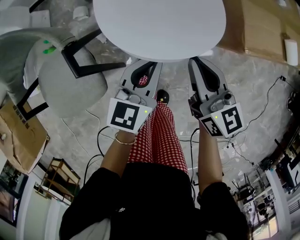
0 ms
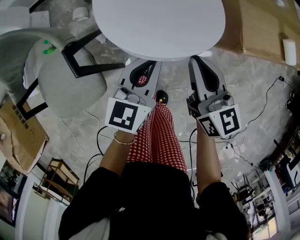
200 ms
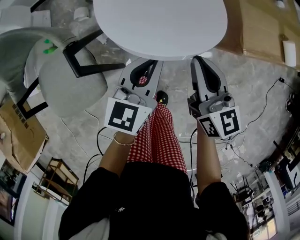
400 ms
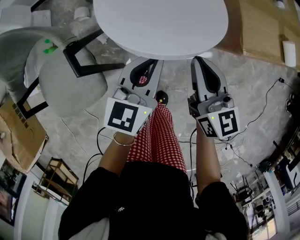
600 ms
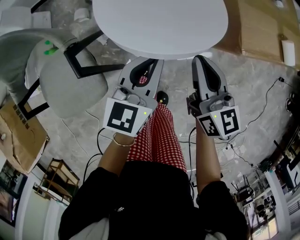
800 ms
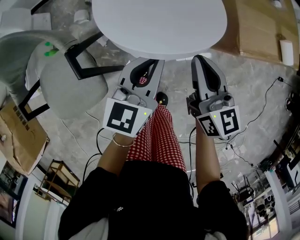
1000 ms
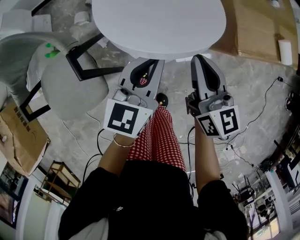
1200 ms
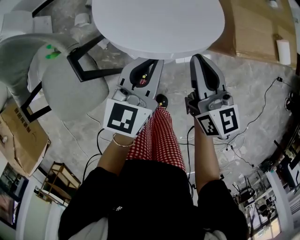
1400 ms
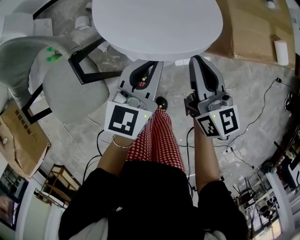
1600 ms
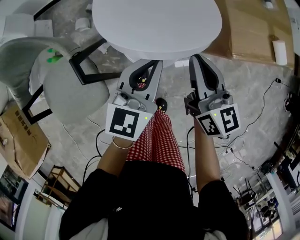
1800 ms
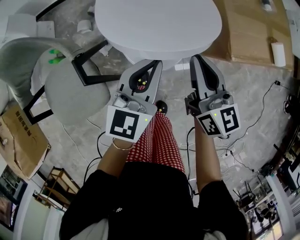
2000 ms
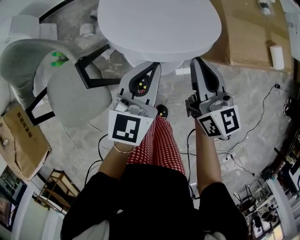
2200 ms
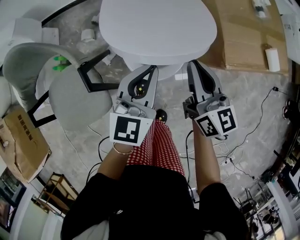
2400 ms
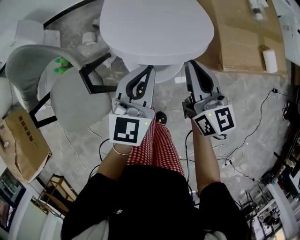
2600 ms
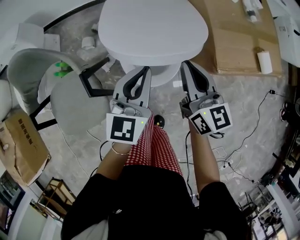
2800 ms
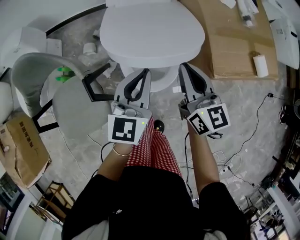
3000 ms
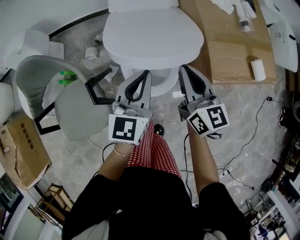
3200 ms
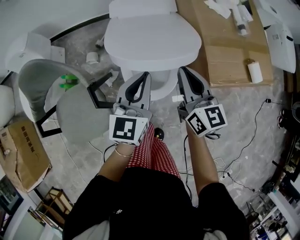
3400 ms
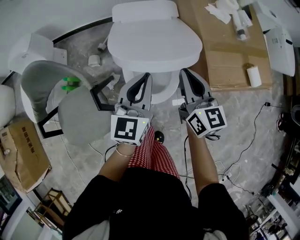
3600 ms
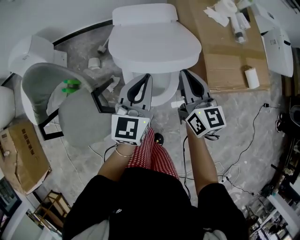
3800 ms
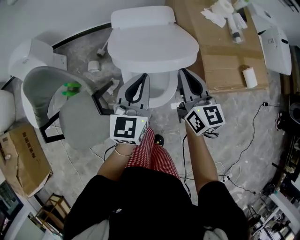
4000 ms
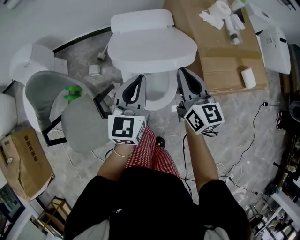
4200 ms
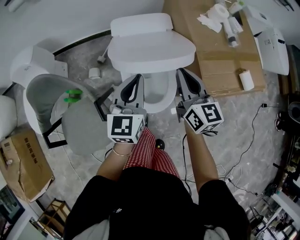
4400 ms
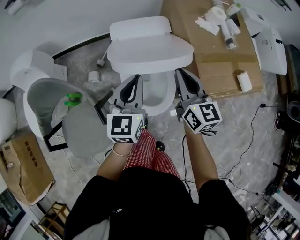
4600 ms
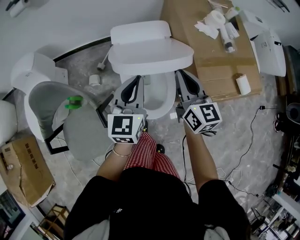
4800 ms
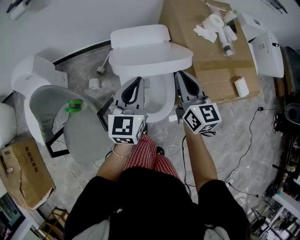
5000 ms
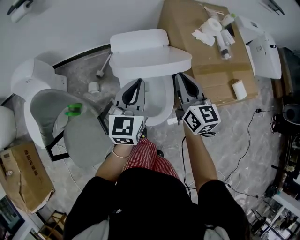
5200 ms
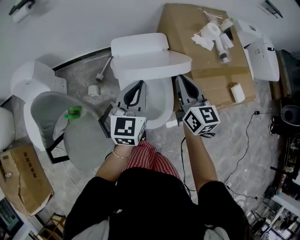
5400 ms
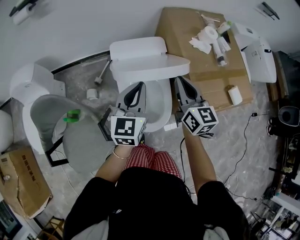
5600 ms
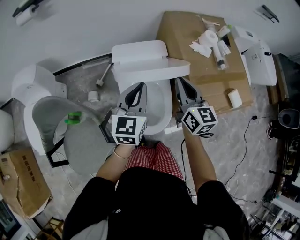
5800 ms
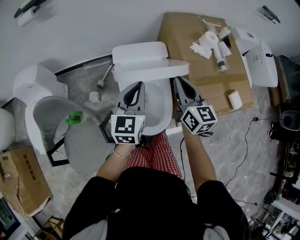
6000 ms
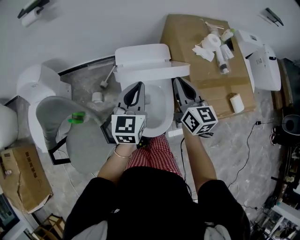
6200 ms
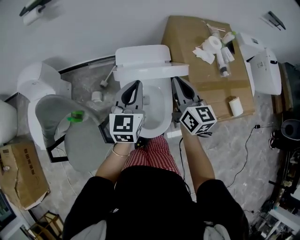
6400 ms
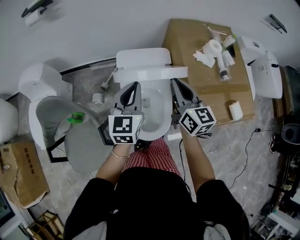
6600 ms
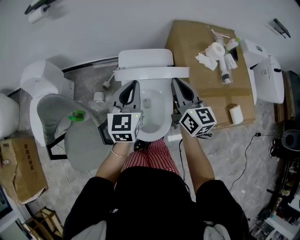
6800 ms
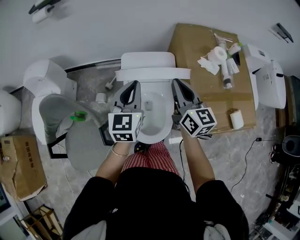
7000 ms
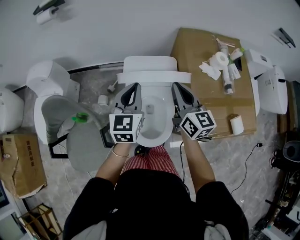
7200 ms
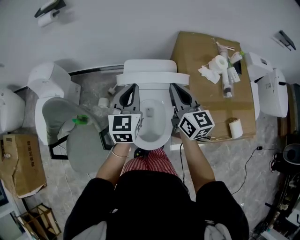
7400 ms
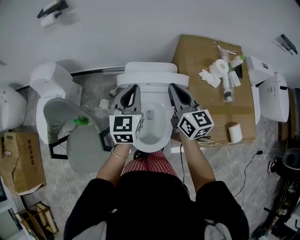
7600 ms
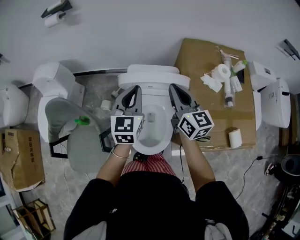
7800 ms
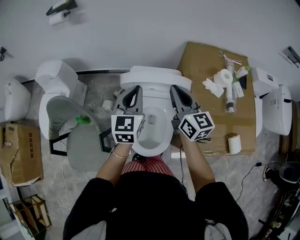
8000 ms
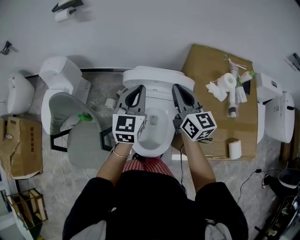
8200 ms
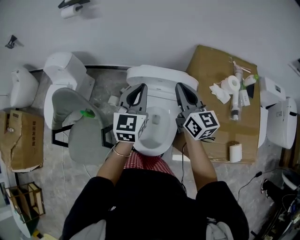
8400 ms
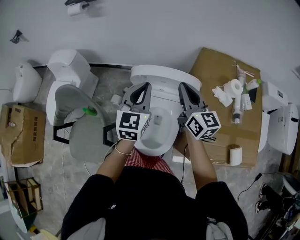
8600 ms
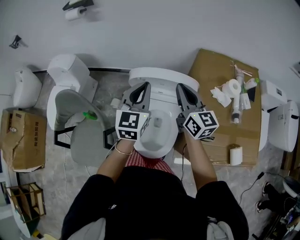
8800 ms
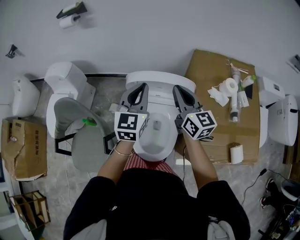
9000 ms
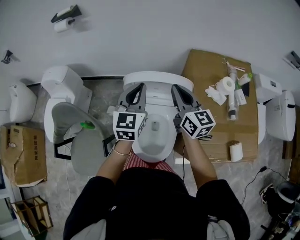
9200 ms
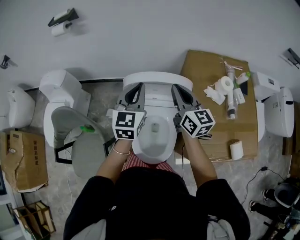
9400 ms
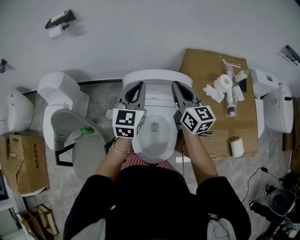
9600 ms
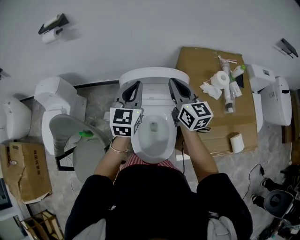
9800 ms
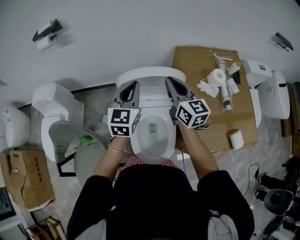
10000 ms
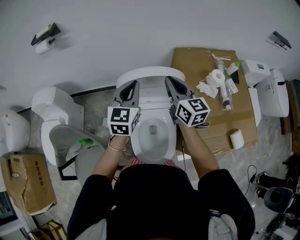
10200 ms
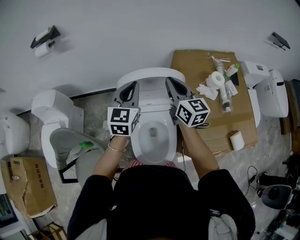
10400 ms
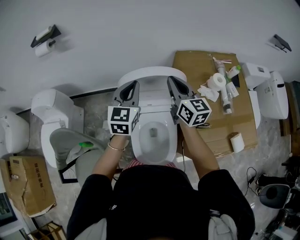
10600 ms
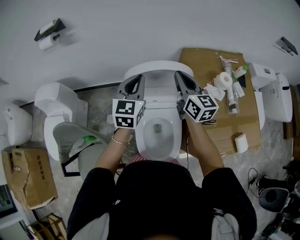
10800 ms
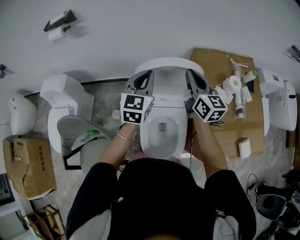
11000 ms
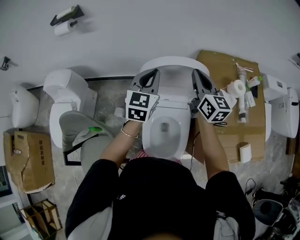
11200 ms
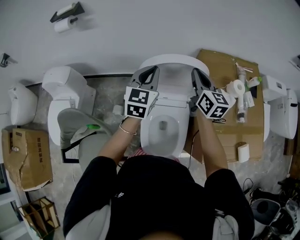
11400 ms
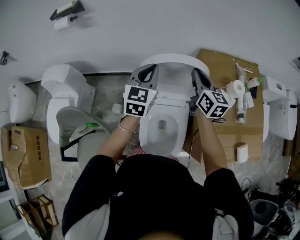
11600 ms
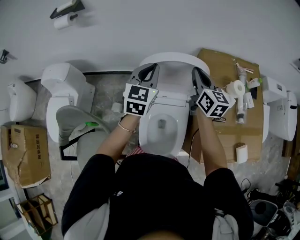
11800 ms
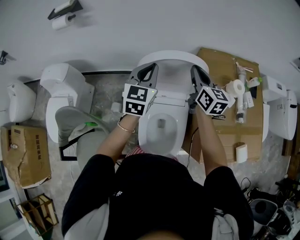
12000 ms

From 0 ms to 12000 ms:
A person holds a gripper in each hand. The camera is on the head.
From 0 ms to 1600 ms: The left gripper shifts approximately 5 cm upward. The right gripper changes place by about 5 cm.
From 1600 ms to 3000 ms: The grippers both shift upward by roughly 5 cm.
From 3000 ms to 4400 ms: Both grippers travel together upward and forward, roughly 10 cm.
From 4400 ms to 6000 ms: Both grippers move forward, roughly 5 cm.
From 6000 ms to 7600 ms: Both grippers move forward, roughly 5 cm.
From 7600 ms to 9000 ms: The left gripper moves some 5 cm; the right gripper travels forward by approximately 5 cm.
From 9000 ms to 10400 ms: The grippers both shift forward by approximately 5 cm.
From 10400 ms to 12000 ms: The grippers both shift forward by about 5 cm.

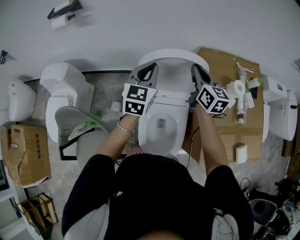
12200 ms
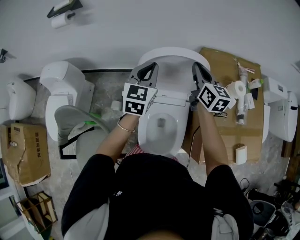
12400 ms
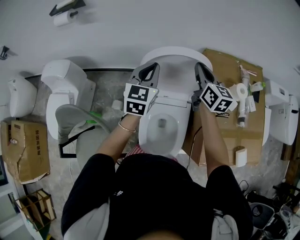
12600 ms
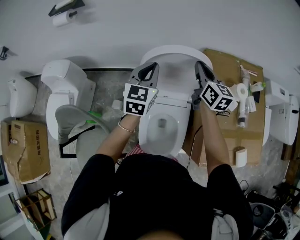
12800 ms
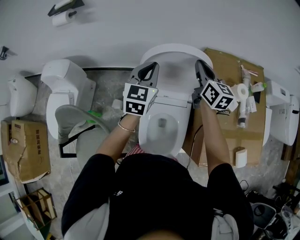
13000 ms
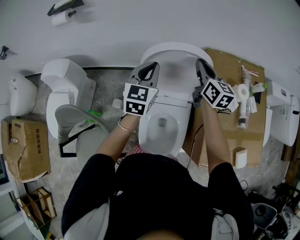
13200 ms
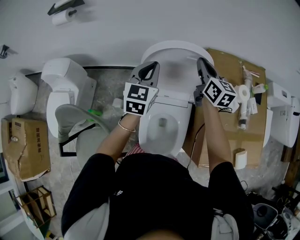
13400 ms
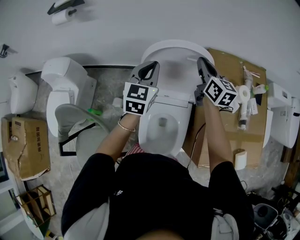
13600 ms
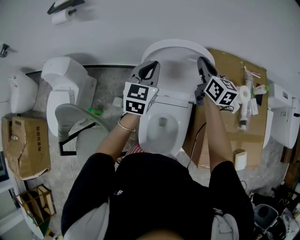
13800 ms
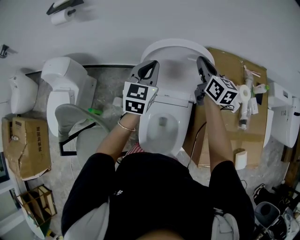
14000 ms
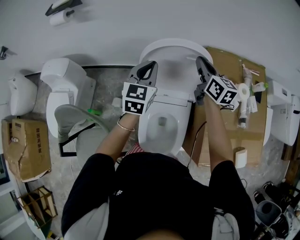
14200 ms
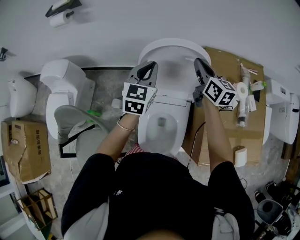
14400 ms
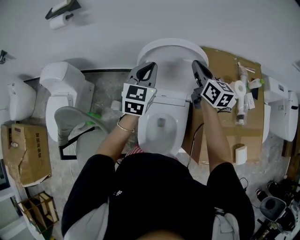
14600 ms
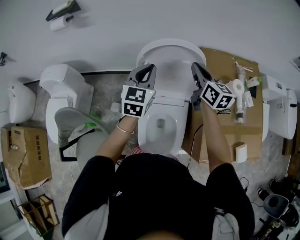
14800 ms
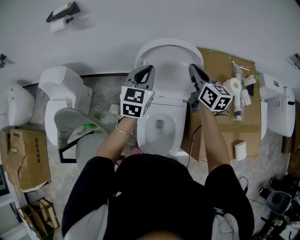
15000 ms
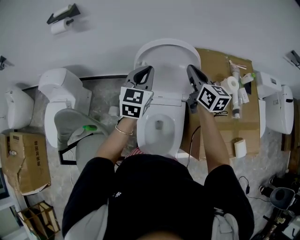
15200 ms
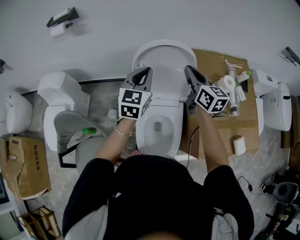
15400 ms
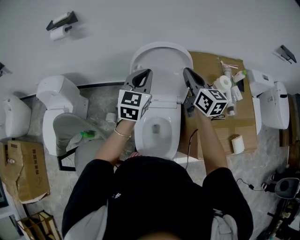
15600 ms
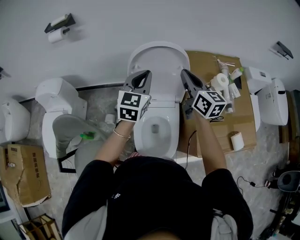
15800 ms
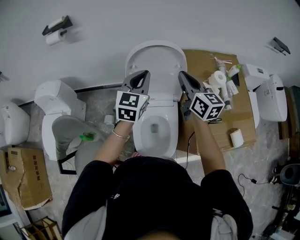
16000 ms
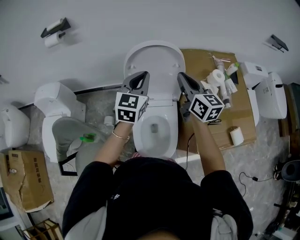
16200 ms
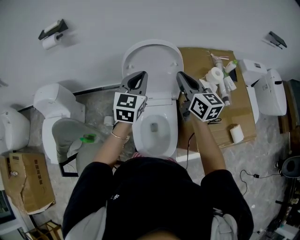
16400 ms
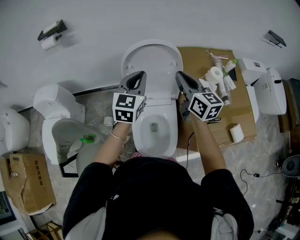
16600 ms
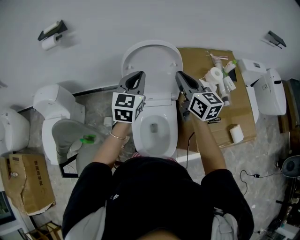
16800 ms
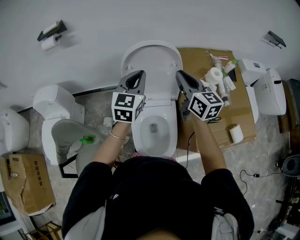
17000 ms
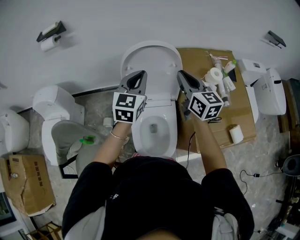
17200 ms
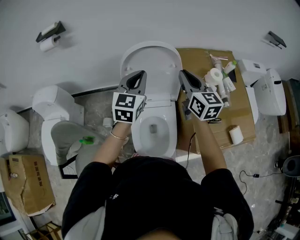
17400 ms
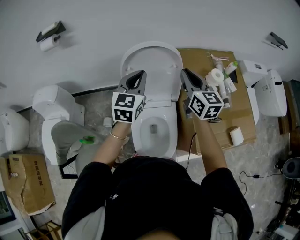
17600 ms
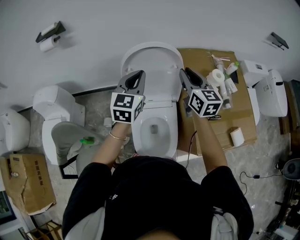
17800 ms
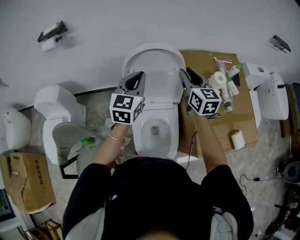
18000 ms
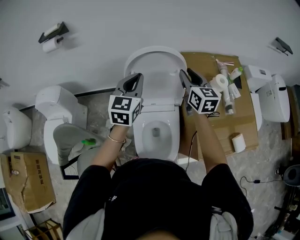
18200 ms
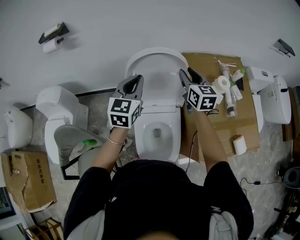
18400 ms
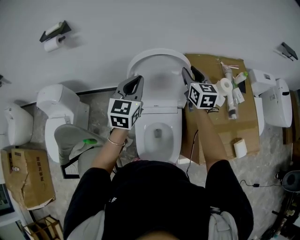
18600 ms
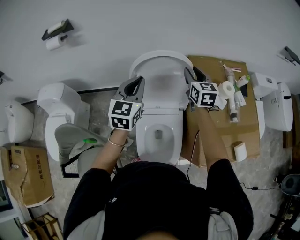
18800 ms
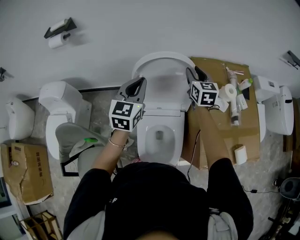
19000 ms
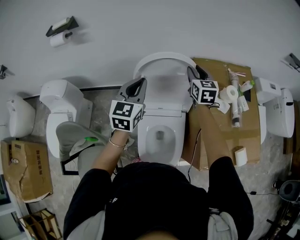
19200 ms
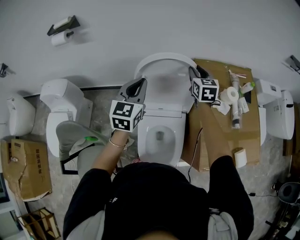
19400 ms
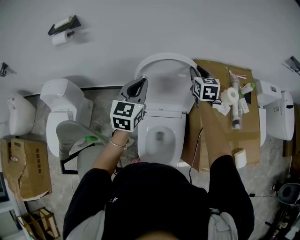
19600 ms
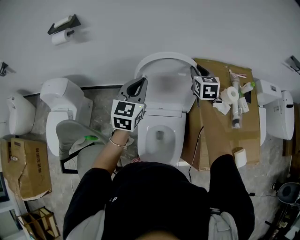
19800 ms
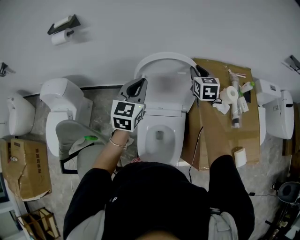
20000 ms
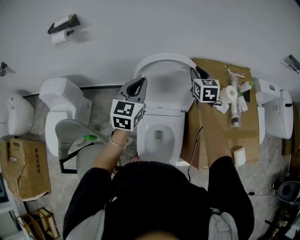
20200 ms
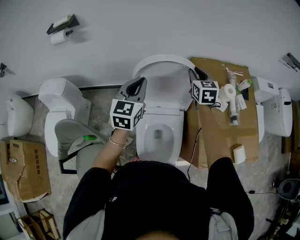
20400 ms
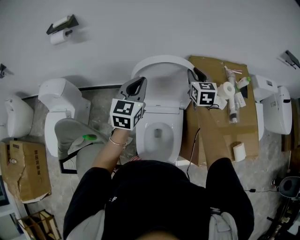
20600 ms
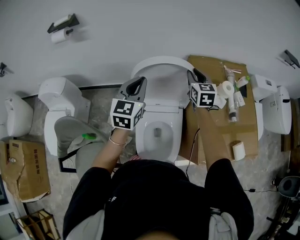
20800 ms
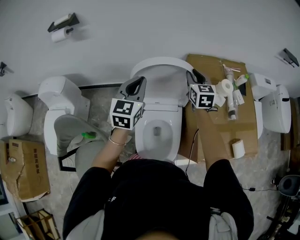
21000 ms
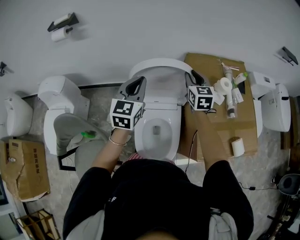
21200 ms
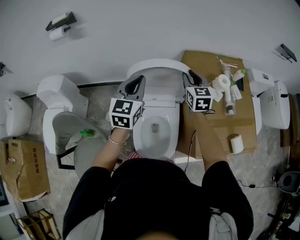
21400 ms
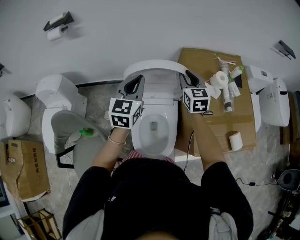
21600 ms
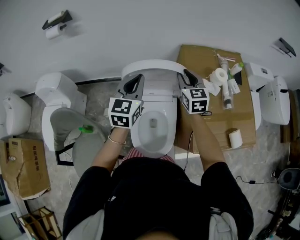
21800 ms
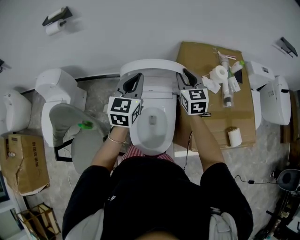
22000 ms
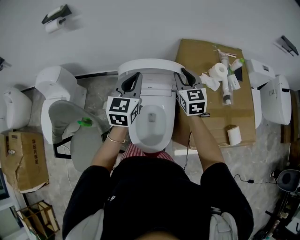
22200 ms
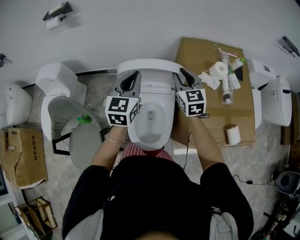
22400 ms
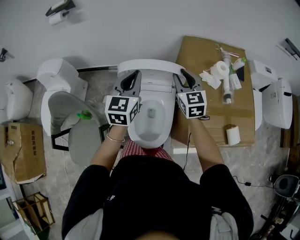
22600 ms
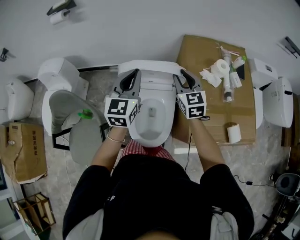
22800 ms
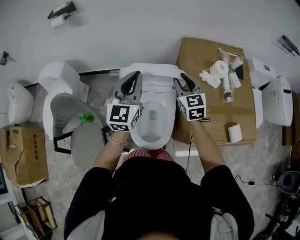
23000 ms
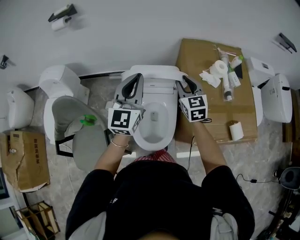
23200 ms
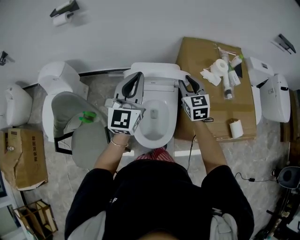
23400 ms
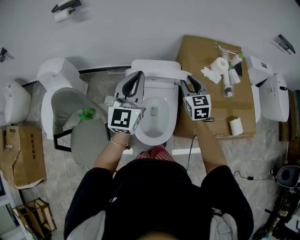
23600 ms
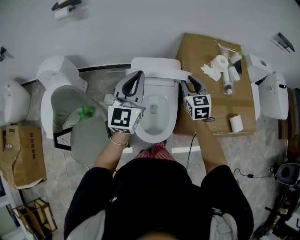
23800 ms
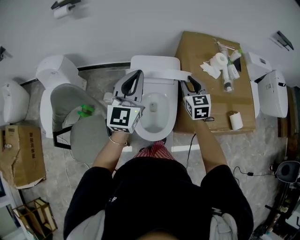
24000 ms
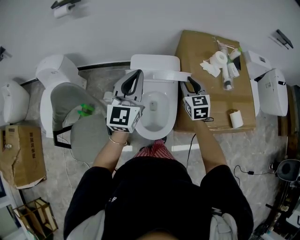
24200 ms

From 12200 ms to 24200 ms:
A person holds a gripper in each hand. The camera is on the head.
From 12200 ms to 13800 ms: The right gripper heads forward, covering about 5 cm.
From 13800 ms to 15200 ms: The right gripper moves backward, roughly 10 cm. The left gripper travels backward by approximately 5 cm.
From 15200 ms to 16600 ms: The left gripper is displaced backward by some 5 cm. The right gripper moves backward, about 10 cm.
From 16600 ms to 18200 ms: The right gripper heads forward, covering about 10 cm, and opens its fingers.
From 18200 ms to 19800 ms: The right gripper shifts roughly 15 cm forward and downward.
From 19800 ms to 21200 ms: The right gripper moves backward, about 10 cm, while the left gripper travels backward by some 5 cm.
From 21200 ms to 22600 ms: The right gripper shifts roughly 10 cm backward. The left gripper travels backward by roughly 5 cm.
From 22600 ms to 24200 ms: Both grippers move backward, some 10 cm.
